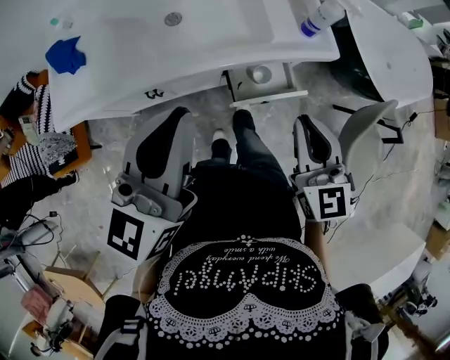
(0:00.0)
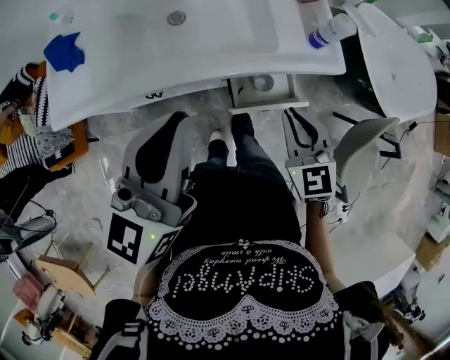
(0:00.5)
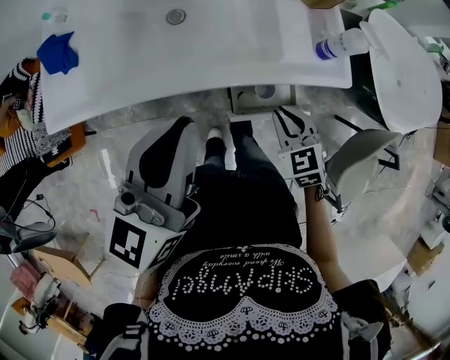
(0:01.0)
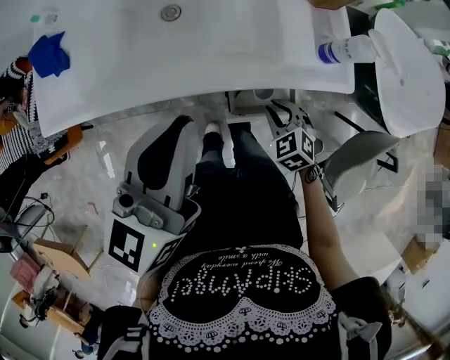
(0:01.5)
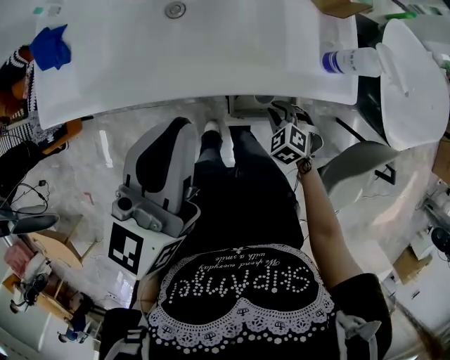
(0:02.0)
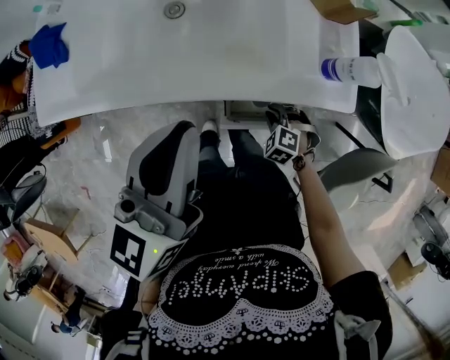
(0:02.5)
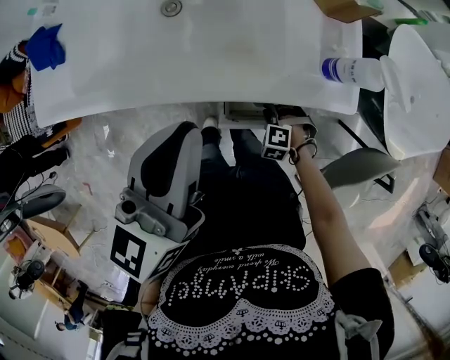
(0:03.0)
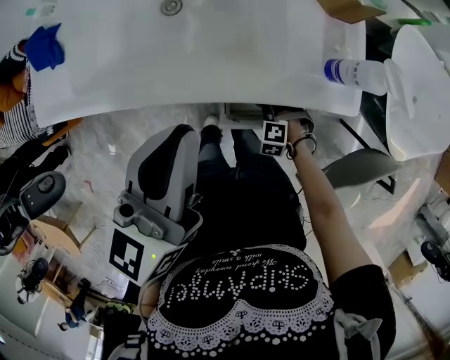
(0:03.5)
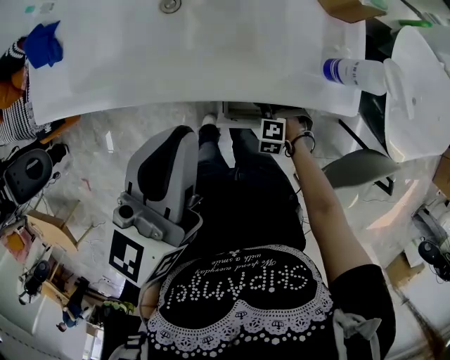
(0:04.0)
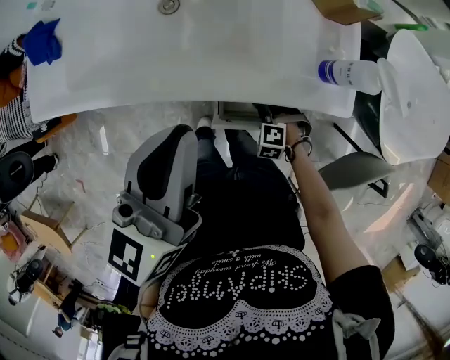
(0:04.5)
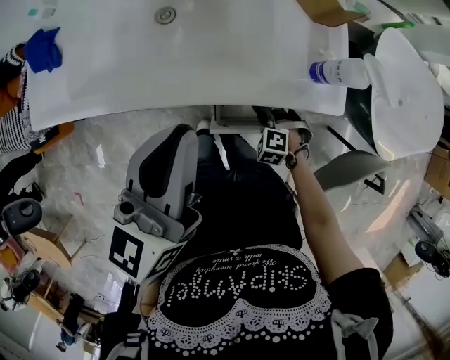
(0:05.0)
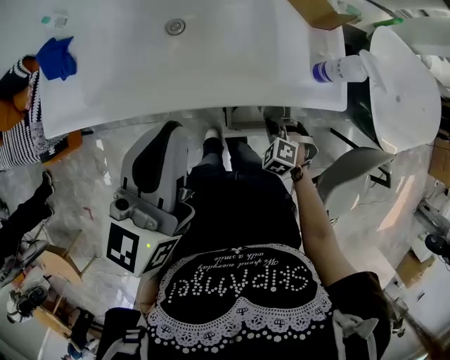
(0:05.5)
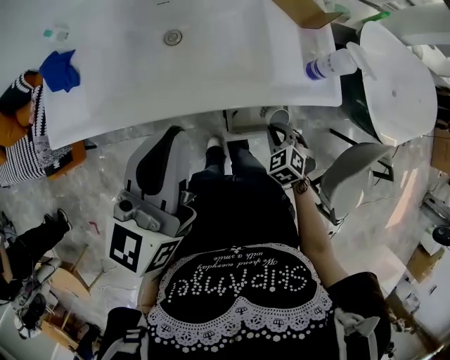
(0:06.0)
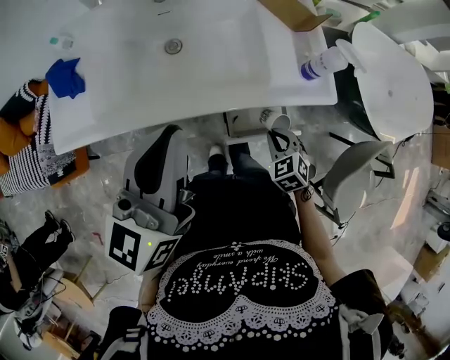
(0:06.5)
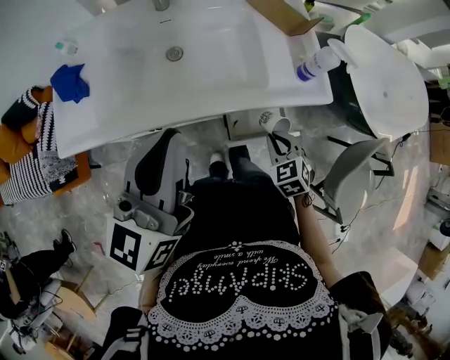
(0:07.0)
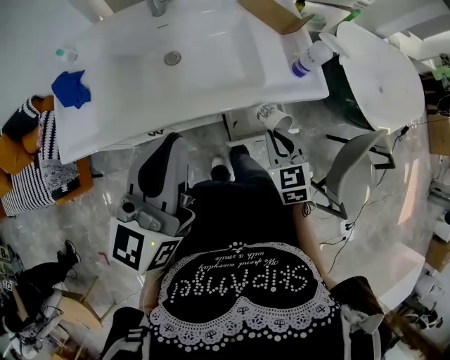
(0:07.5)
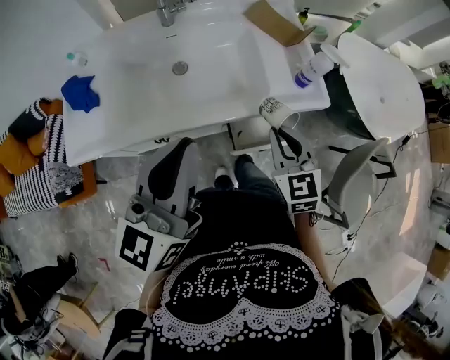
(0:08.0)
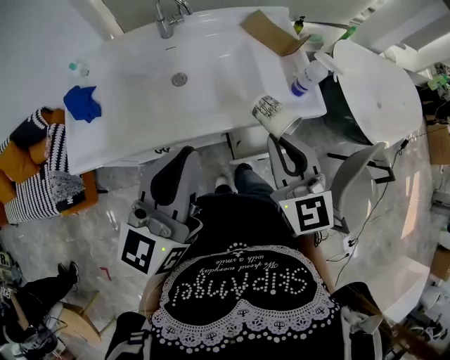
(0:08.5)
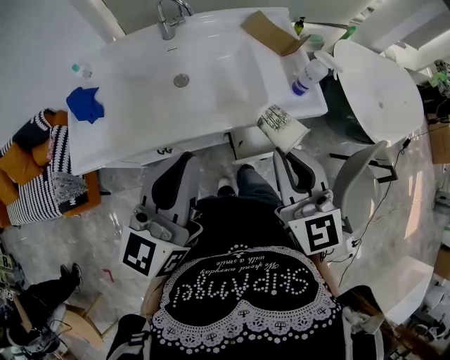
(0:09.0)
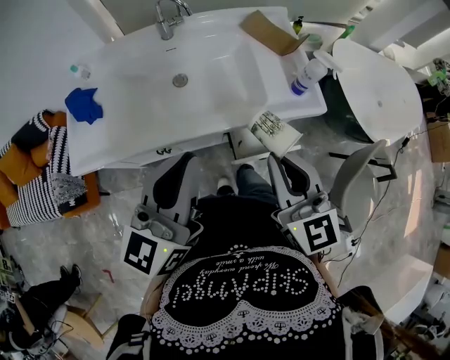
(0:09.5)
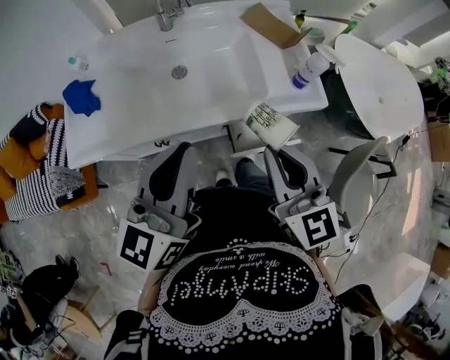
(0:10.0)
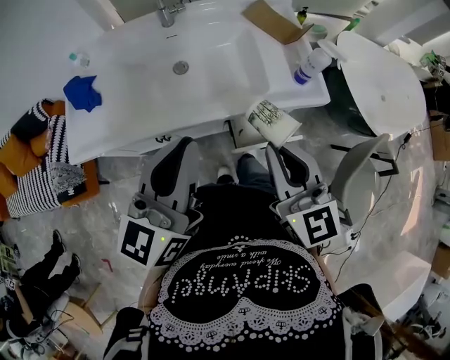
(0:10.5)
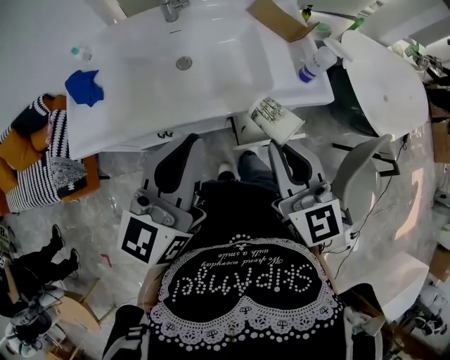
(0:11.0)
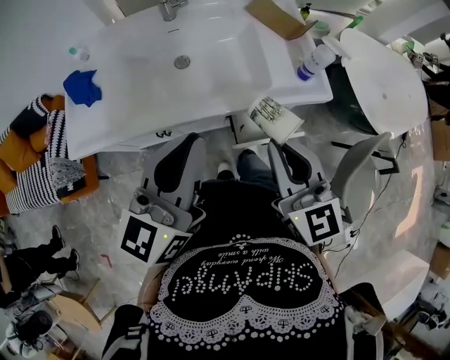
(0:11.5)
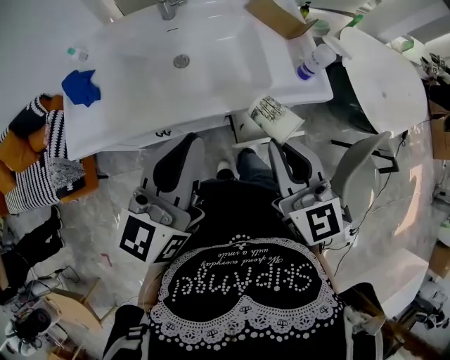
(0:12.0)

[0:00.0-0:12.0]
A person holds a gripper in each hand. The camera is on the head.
0:00.0 to 0:02.0: The right gripper shifts approximately 30 cm downward, and points its fingers some 50 degrees further downward. Meanwhile the left gripper heads forward, covering approximately 10 cm.
0:02.0 to 0:04.0: The right gripper heads downward, covering roughly 10 cm, and rotates some 40 degrees.
0:04.0 to 0:06.0: The left gripper changes place by approximately 10 cm, while the right gripper moves upward, roughly 15 cm, and rolls clockwise, seen from behind, by approximately 50 degrees.
0:06.0 to 0:08.0: The left gripper heads backward, covering some 5 cm. The right gripper travels upward by about 25 cm, and tilts its fingers about 40 degrees upward.
0:08.0 to 0:10.0: The right gripper moves upward and backward, about 10 cm, and turns by approximately 20 degrees.
0:10.0 to 0:12.0: Both grippers stay about where they are.

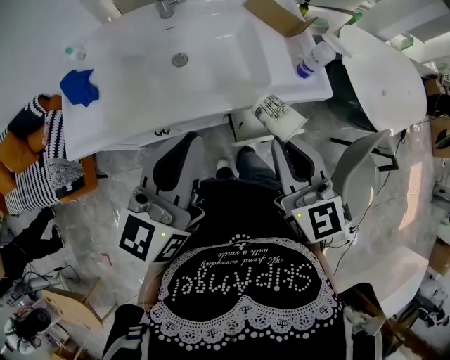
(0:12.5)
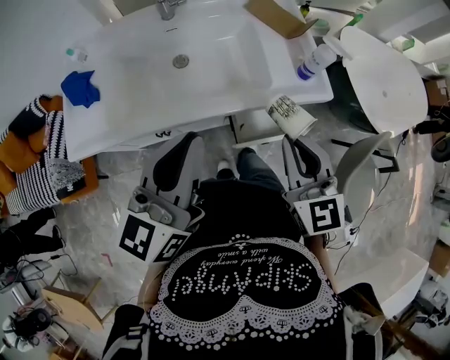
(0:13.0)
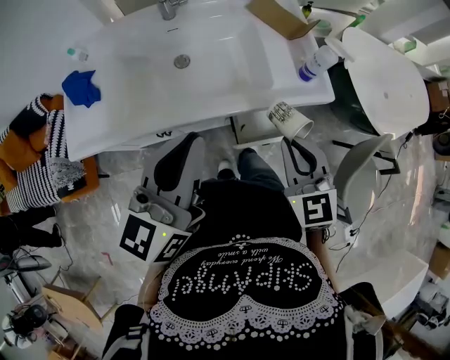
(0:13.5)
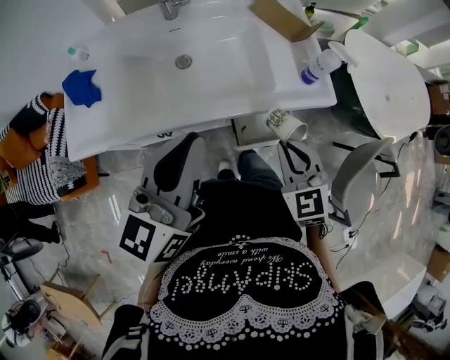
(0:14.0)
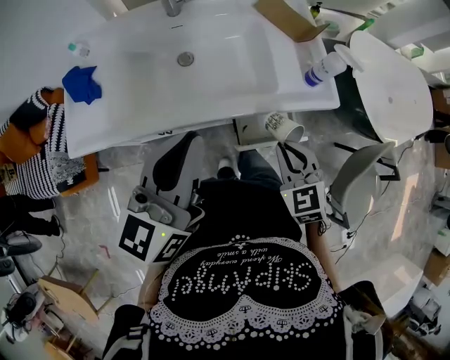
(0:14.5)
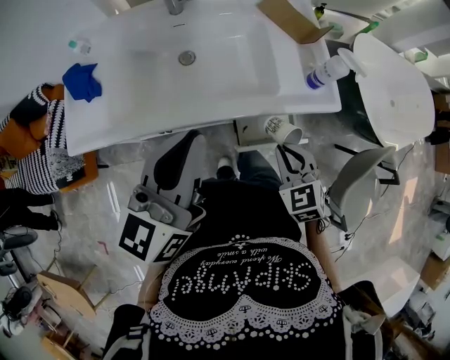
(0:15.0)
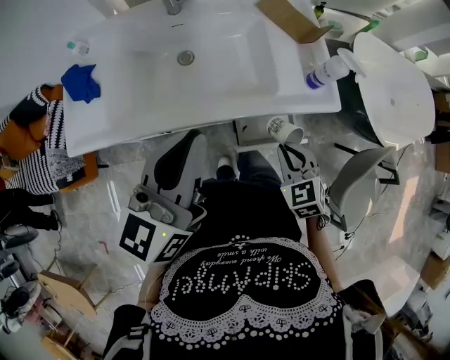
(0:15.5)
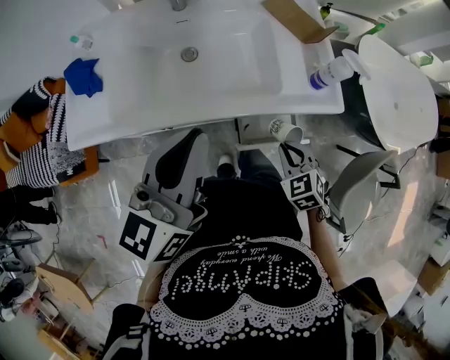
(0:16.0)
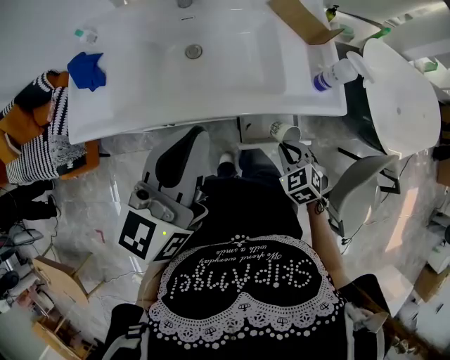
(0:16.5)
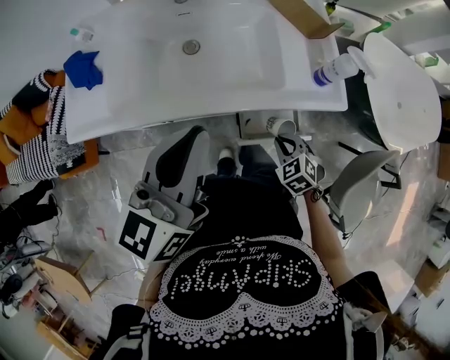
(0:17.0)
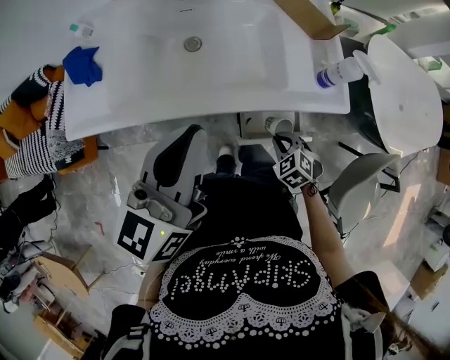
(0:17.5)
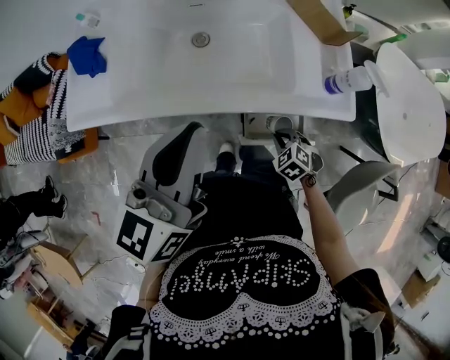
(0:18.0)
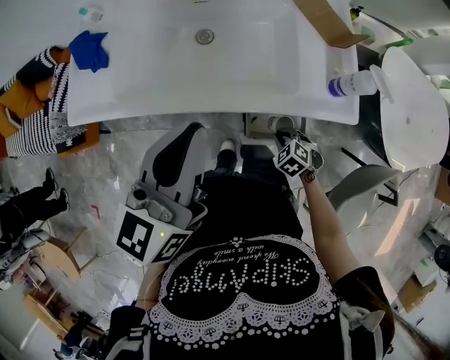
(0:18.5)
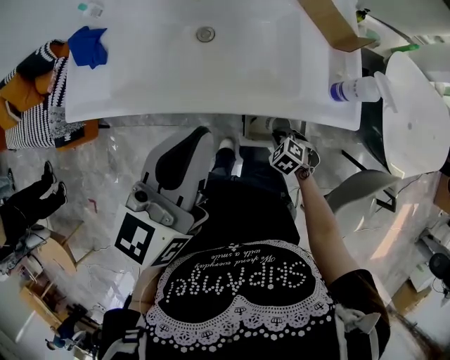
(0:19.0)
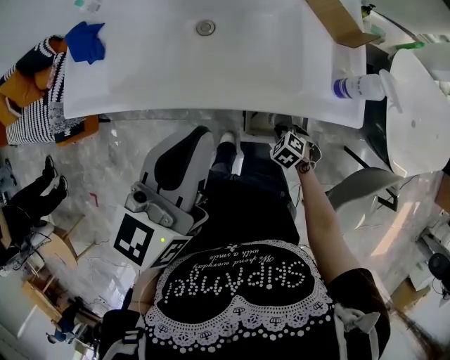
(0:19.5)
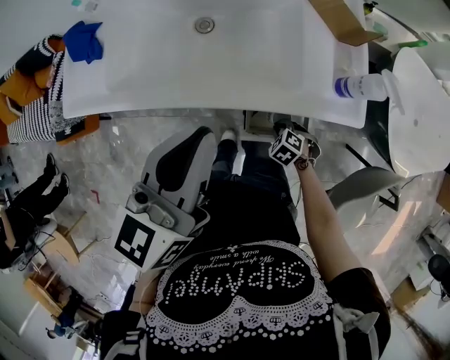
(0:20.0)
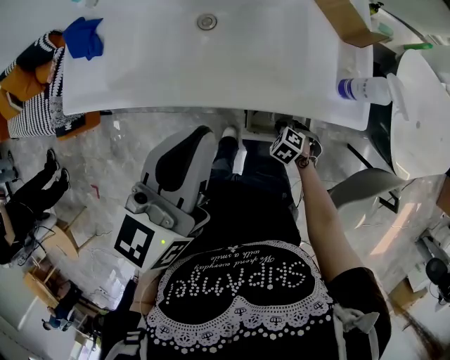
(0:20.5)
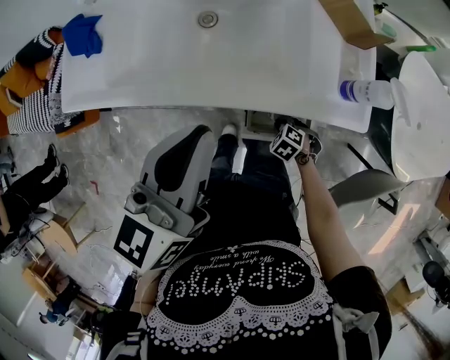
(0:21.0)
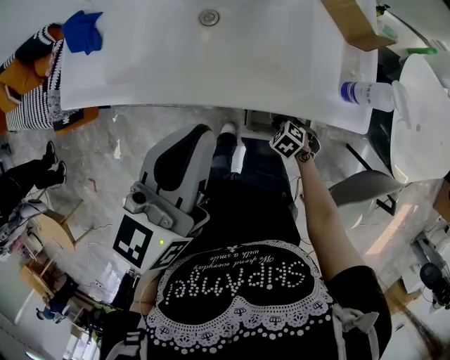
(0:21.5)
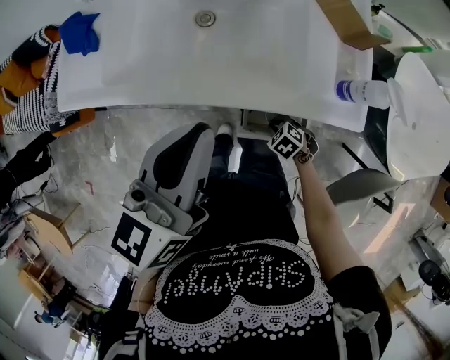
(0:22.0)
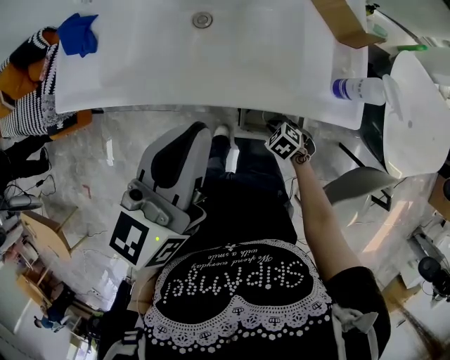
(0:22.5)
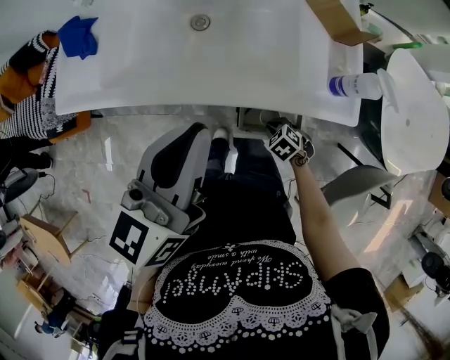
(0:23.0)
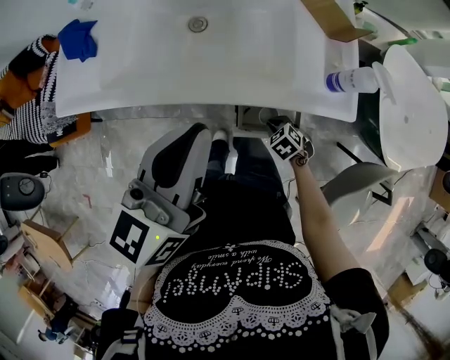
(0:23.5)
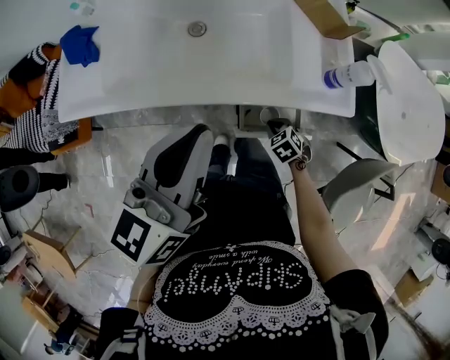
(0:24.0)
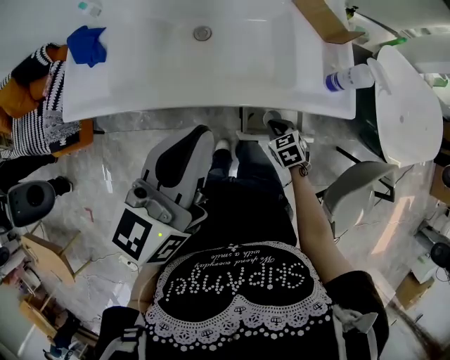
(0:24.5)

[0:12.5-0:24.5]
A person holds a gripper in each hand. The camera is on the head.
0:12.5 to 0:14.5: The right gripper travels downward by about 15 cm, and changes its angle by some 30 degrees.
0:14.5 to 0:16.5: The right gripper goes about 10 cm downward, and turns by roughly 20 degrees.
0:16.5 to 0:18.5: The right gripper goes about 10 cm downward, and swivels some 20 degrees.
0:18.5 to 0:20.5: The right gripper heads downward, covering roughly 5 cm.
0:20.5 to 0:22.5: The grippers move only a little.
0:22.5 to 0:24.5: The right gripper shifts some 5 cm upward, and turns by roughly 30 degrees.

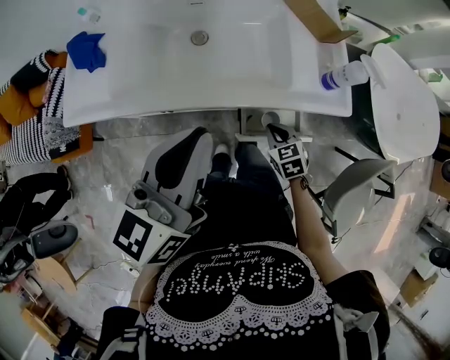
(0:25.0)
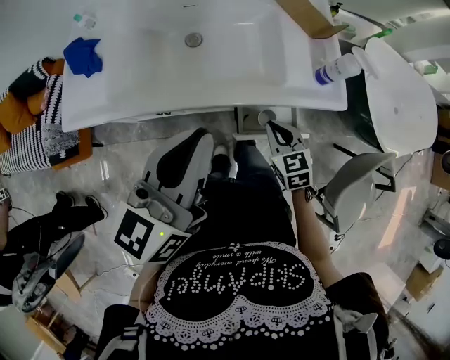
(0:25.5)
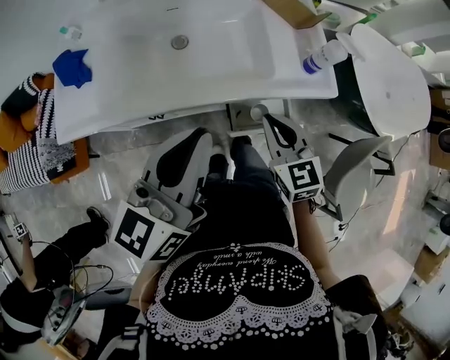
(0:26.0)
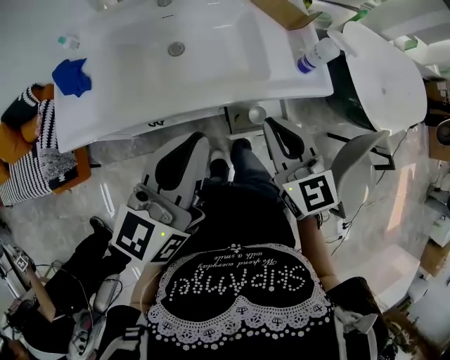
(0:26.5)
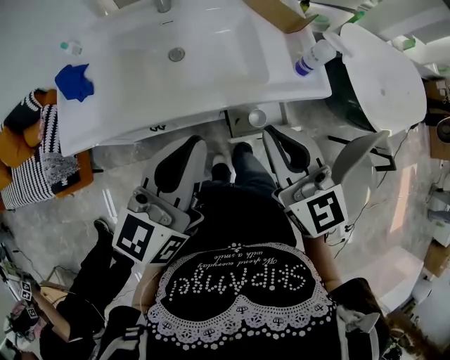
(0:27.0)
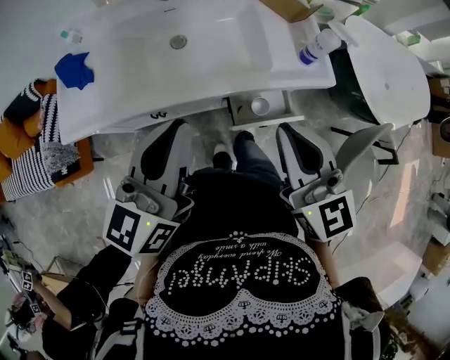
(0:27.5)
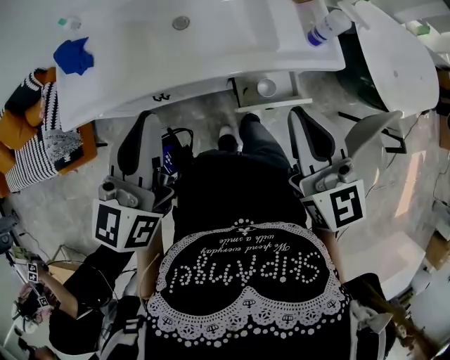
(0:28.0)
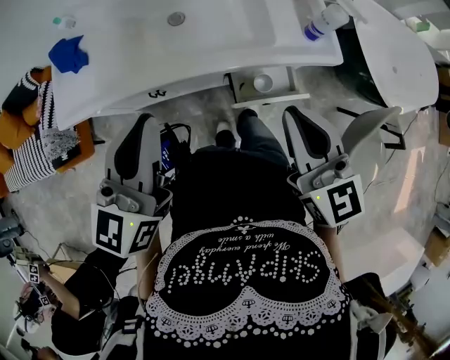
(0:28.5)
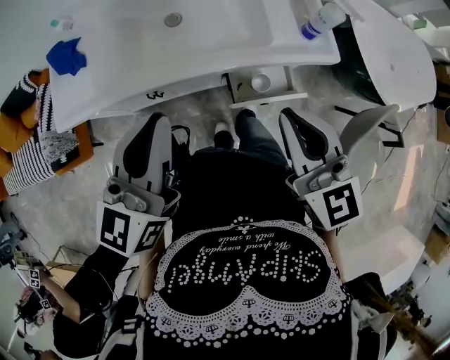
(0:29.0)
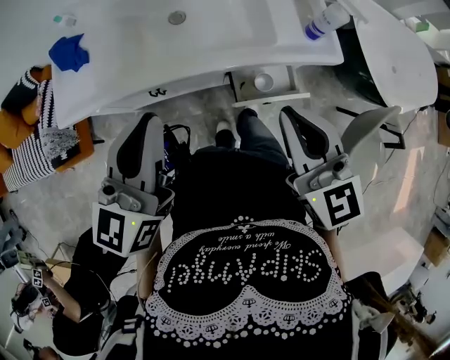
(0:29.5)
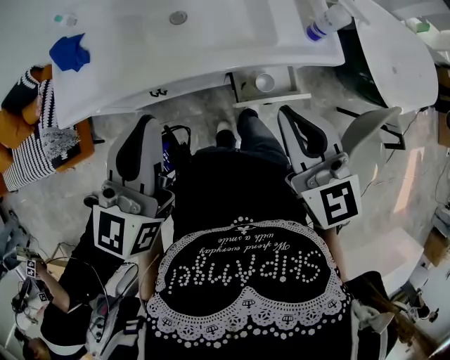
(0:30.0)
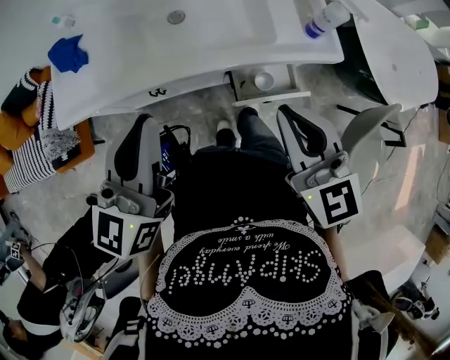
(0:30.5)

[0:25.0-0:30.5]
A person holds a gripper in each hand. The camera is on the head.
0:25.0 to 0:27.0: The right gripper travels upward by approximately 35 cm, and tilts its fingers roughly 40 degrees upward.
0:27.0 to 0:28.5: The left gripper is displaced to the left by approximately 5 cm.
0:28.5 to 0:30.5: The grippers stay close to where they were, moving slightly.
